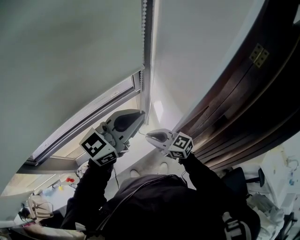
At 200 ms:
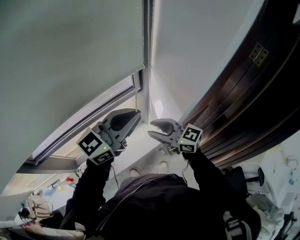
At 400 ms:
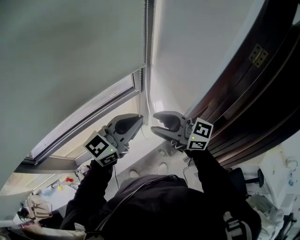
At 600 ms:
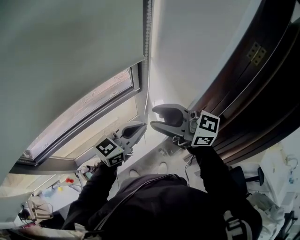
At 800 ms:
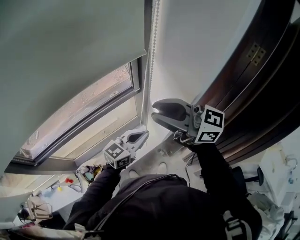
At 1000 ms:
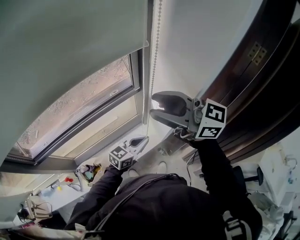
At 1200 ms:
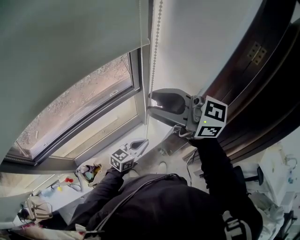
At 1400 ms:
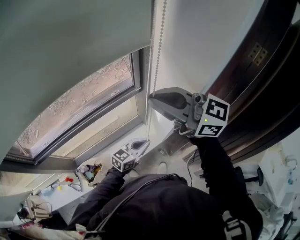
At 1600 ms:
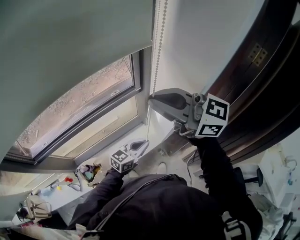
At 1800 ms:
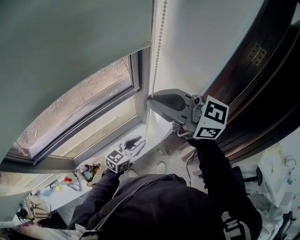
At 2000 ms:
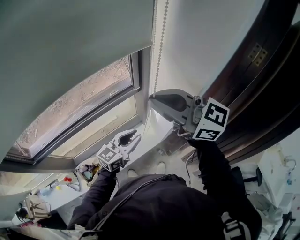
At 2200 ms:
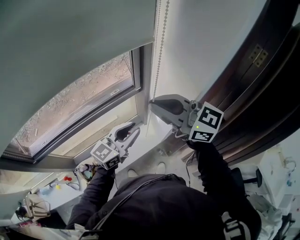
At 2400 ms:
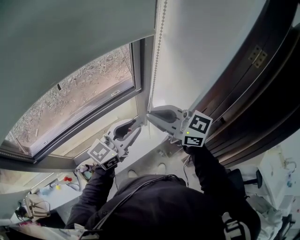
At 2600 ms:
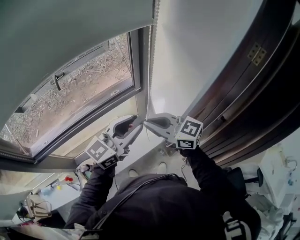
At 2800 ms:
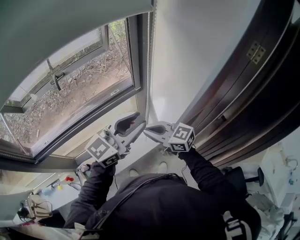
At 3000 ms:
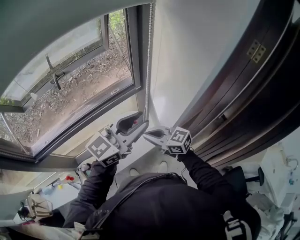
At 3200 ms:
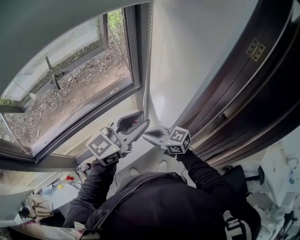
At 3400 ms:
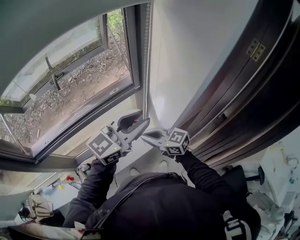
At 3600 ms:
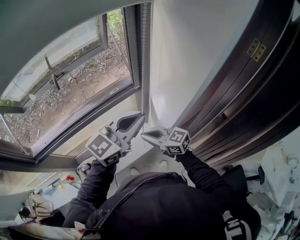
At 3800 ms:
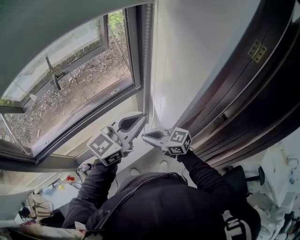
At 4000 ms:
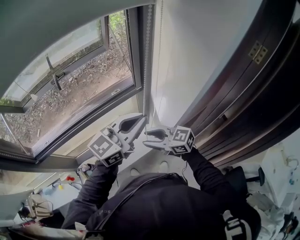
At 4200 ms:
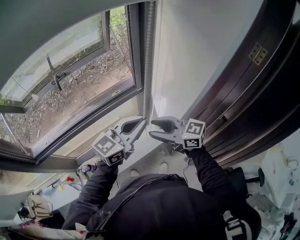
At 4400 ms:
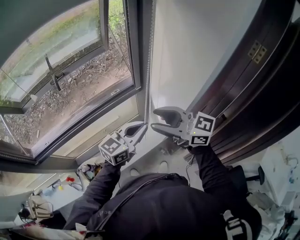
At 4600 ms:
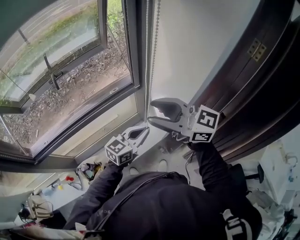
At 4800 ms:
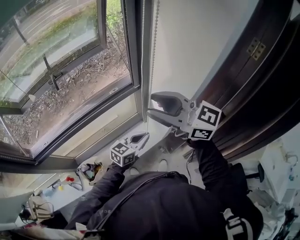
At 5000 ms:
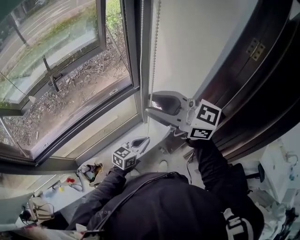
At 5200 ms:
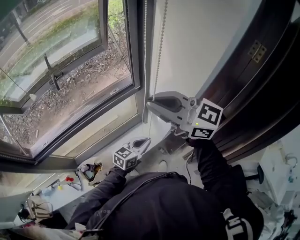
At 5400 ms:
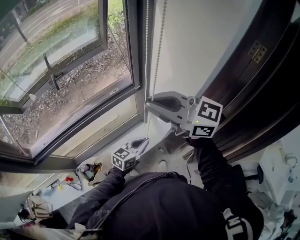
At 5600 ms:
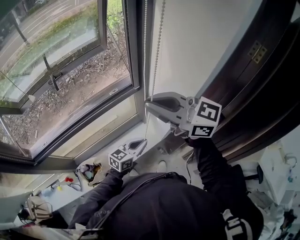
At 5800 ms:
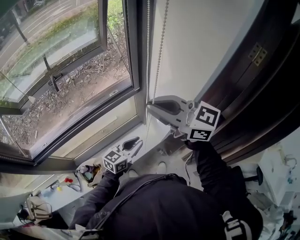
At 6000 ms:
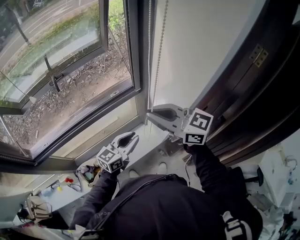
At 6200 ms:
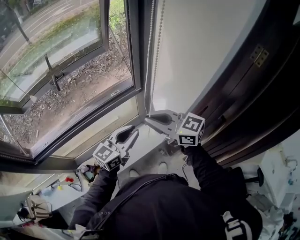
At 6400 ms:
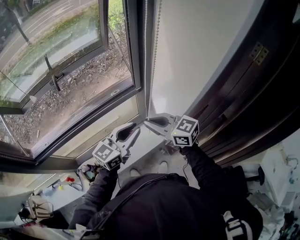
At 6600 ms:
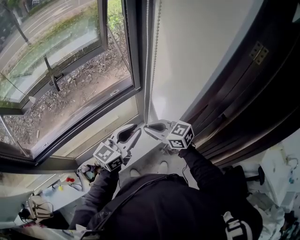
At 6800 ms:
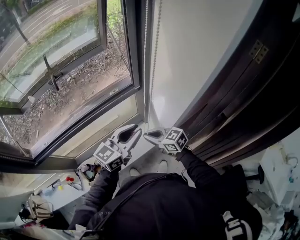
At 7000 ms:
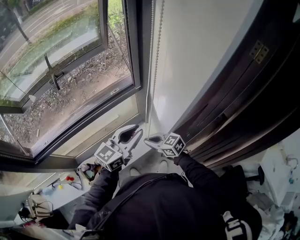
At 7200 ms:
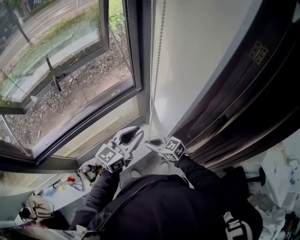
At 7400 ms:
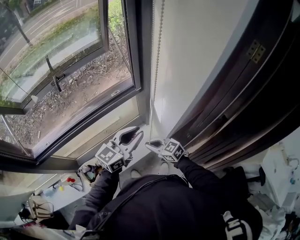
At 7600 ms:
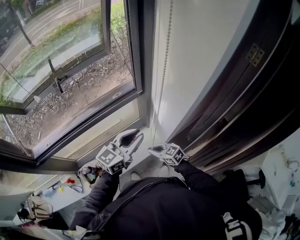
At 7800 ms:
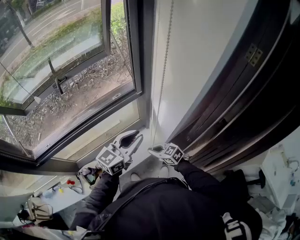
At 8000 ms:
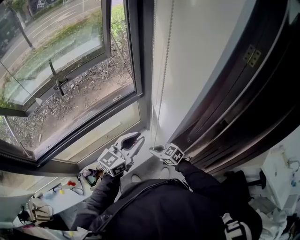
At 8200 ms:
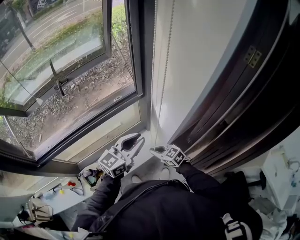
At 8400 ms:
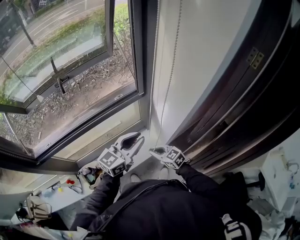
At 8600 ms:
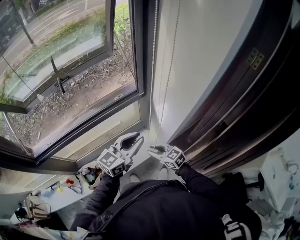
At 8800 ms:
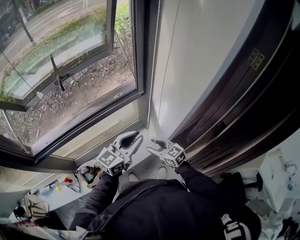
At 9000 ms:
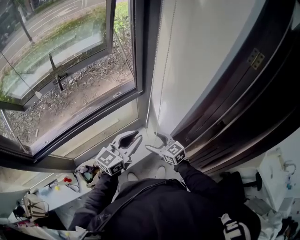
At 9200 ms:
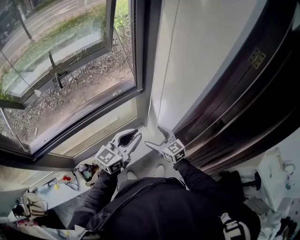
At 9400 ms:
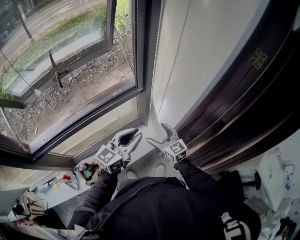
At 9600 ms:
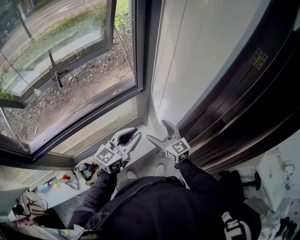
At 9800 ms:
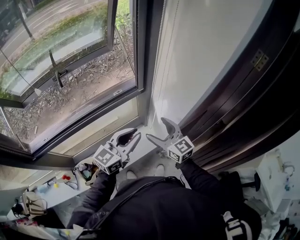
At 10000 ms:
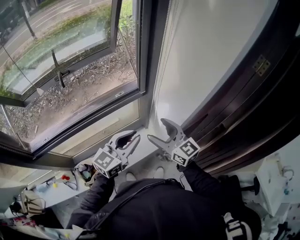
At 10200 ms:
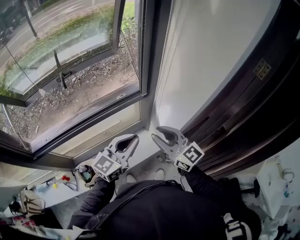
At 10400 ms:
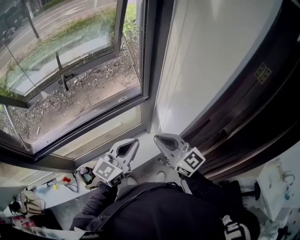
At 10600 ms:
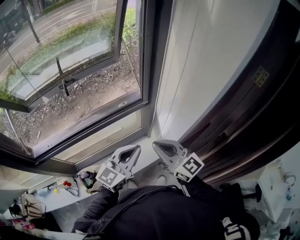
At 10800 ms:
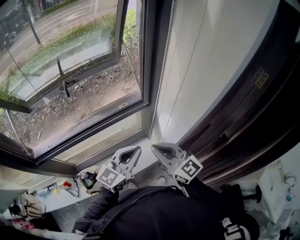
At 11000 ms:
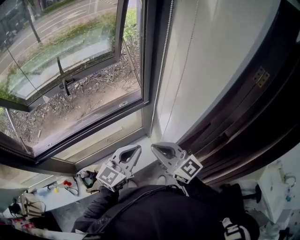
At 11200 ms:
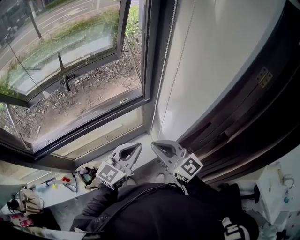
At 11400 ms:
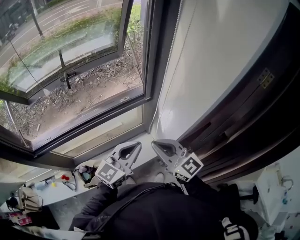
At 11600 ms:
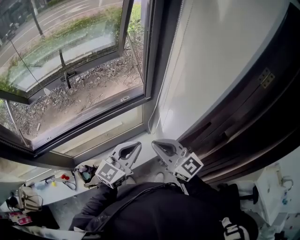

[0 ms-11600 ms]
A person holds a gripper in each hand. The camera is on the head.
0 ms to 1400 ms: The left gripper is displaced downward by approximately 25 cm, and turns by approximately 20 degrees, while the right gripper travels upward by some 30 cm, changes its angle by some 20 degrees, and opens and closes again.
1400 ms to 2800 ms: The right gripper shifts roughly 25 cm downward, and changes its angle by approximately 20 degrees; the left gripper is displaced upward by roughly 25 cm, swivels roughly 20 degrees, and opens.
2800 ms to 4400 ms: The right gripper travels upward by roughly 10 cm, and opens up. The left gripper is displaced downward by about 10 cm, and closes up.
4400 ms to 5800 ms: The left gripper heads downward, covering roughly 15 cm, while the right gripper travels upward by roughly 5 cm, and closes up.
5800 ms to 7200 ms: The left gripper heads upward, covering some 10 cm. Meanwhile the right gripper heads downward, covering some 35 cm, and swivels some 30 degrees.
7200 ms to 8800 ms: The right gripper opens its fingers.
8800 ms to 10200 ms: The right gripper goes some 20 cm upward, rotates about 30 degrees, and opens and closes again.
10200 ms to 11600 ms: The grippers move only a little.

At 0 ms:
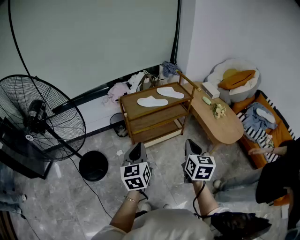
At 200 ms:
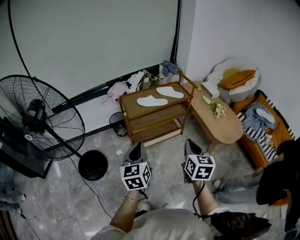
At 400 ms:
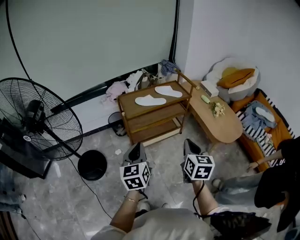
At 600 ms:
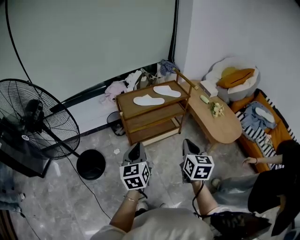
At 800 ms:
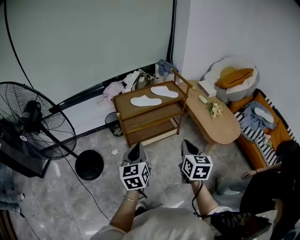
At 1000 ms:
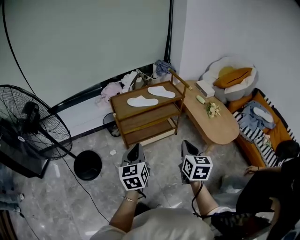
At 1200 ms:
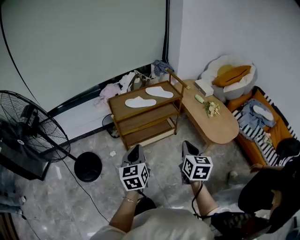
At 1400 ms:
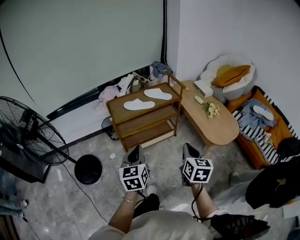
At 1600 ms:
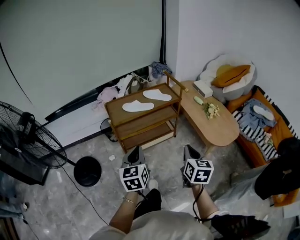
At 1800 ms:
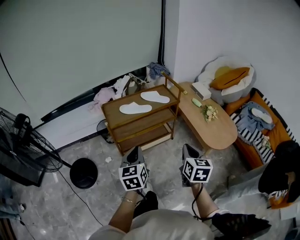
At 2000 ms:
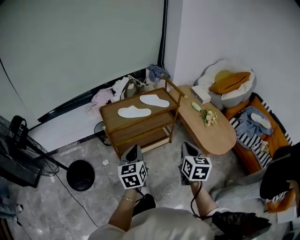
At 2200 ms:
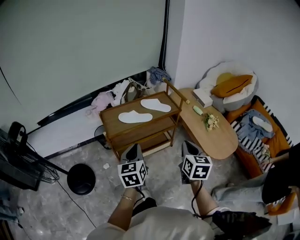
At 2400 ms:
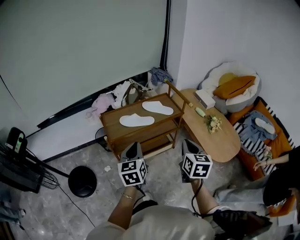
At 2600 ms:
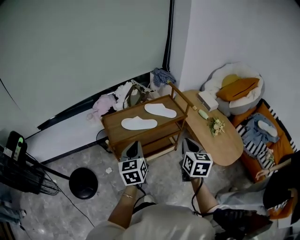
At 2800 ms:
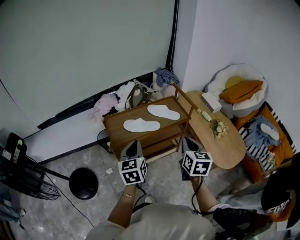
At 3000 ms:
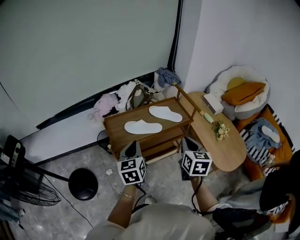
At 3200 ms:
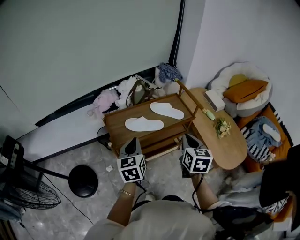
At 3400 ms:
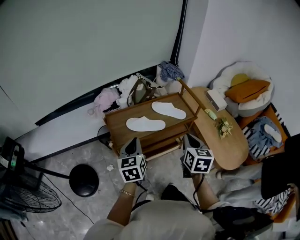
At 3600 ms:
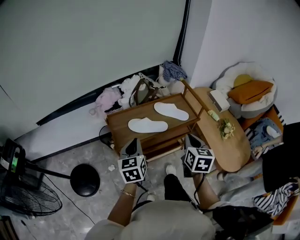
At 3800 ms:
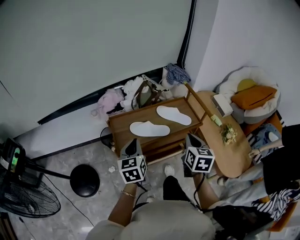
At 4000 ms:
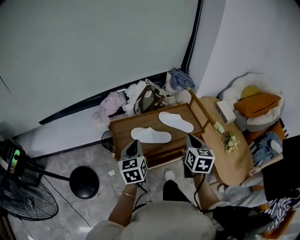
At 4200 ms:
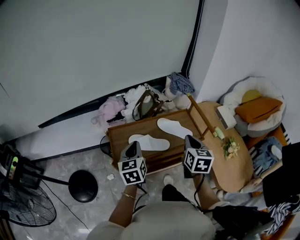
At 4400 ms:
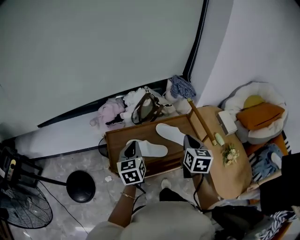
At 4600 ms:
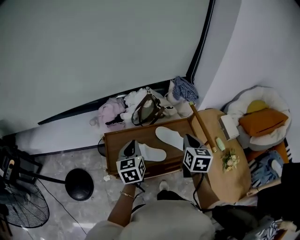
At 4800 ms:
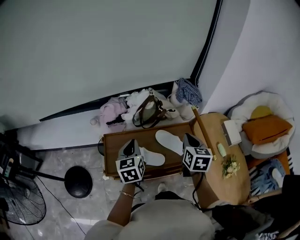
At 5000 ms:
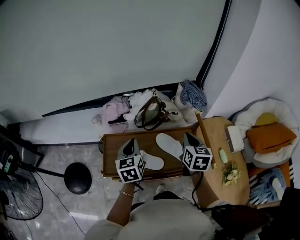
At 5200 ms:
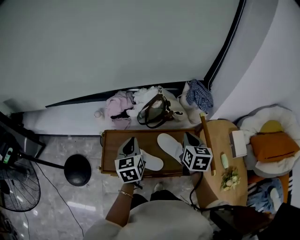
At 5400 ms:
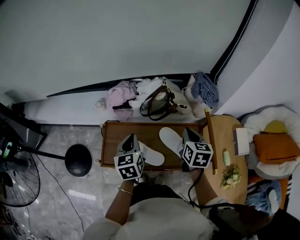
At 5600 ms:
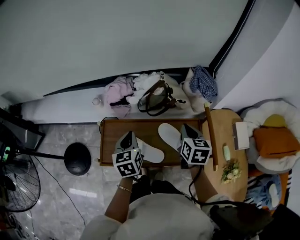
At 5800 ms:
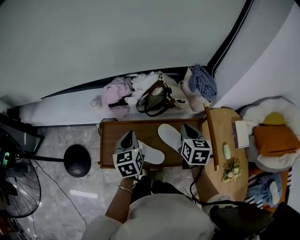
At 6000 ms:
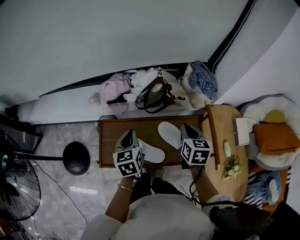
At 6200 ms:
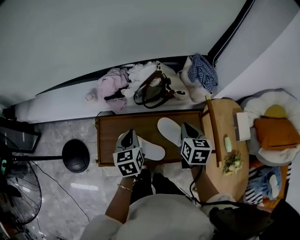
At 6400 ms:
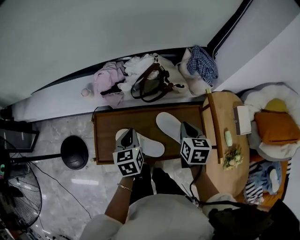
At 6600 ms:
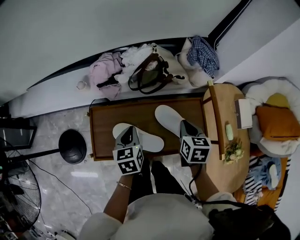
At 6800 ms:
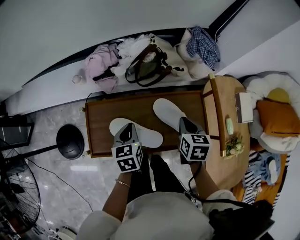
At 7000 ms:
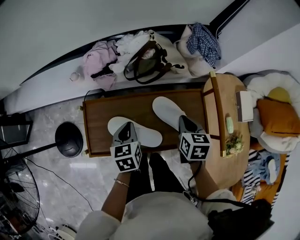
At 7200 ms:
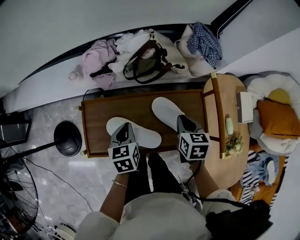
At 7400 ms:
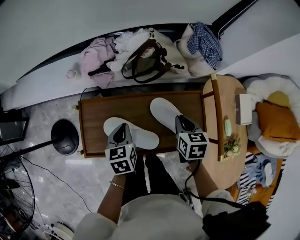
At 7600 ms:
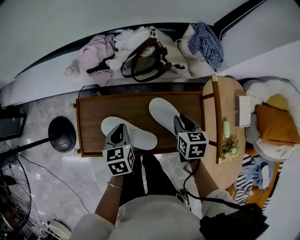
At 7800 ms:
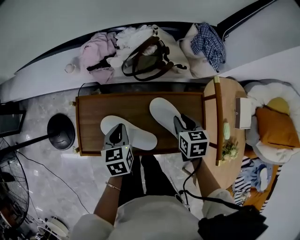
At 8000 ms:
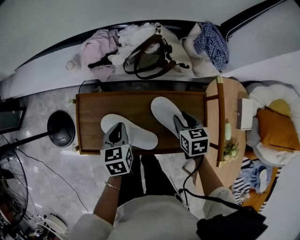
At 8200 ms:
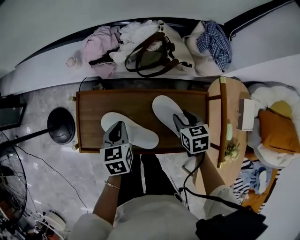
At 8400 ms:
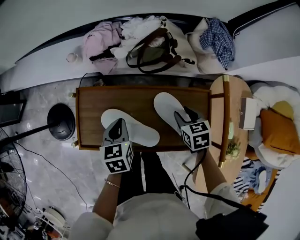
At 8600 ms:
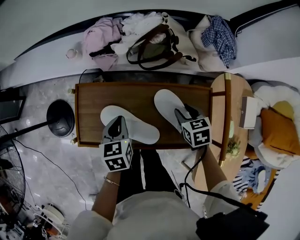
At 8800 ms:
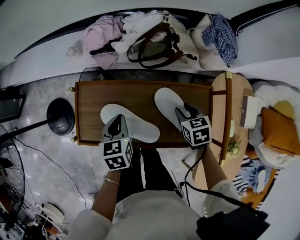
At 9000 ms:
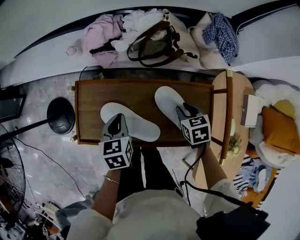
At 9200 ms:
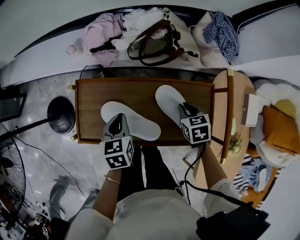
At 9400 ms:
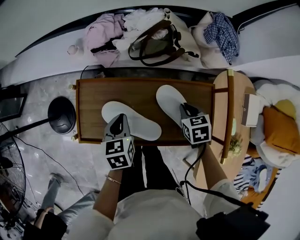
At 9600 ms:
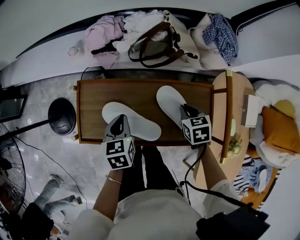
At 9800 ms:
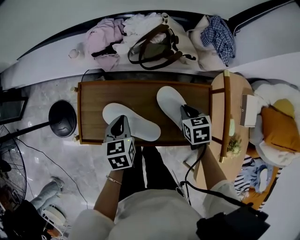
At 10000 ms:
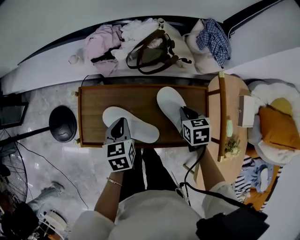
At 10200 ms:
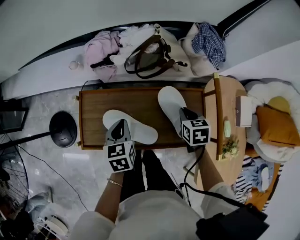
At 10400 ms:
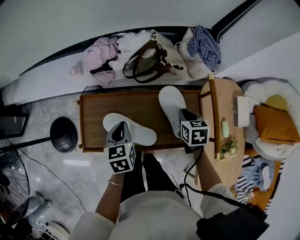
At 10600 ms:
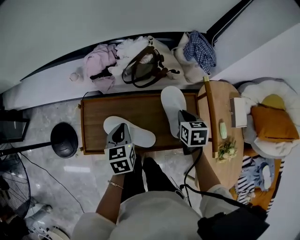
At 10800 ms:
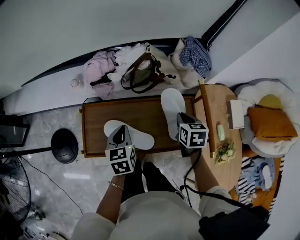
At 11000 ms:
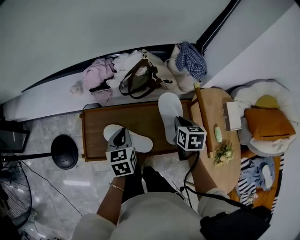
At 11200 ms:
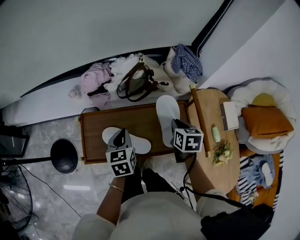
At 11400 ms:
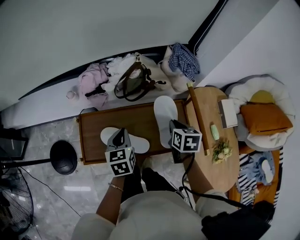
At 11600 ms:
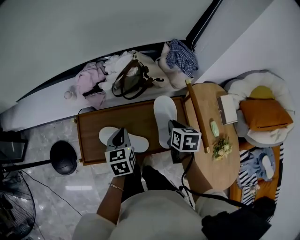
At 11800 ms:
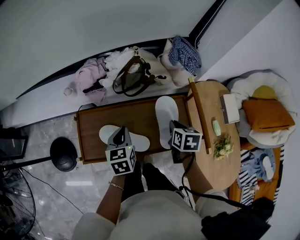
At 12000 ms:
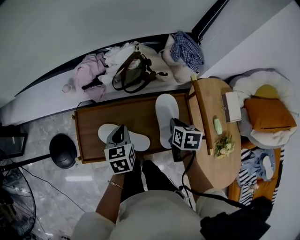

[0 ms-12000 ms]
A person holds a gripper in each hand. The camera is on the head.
0 ms to 1600 ms: Both grippers move to the right, some 10 cm.
1600 ms to 3000 ms: The grippers both shift forward by approximately 25 cm.
3000 ms to 4400 ms: Both grippers move forward, about 20 cm.
4400 ms to 6000 ms: Both grippers move forward and downward, about 15 cm.
6000 ms to 7600 ms: Both grippers travel together downward, some 10 cm.
7600 ms to 9000 ms: The right gripper goes some 5 cm downward, and rotates approximately 20 degrees.
9000 ms to 10400 ms: The right gripper travels upward by approximately 5 cm, and closes.
